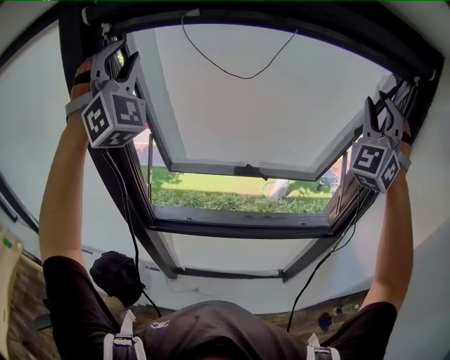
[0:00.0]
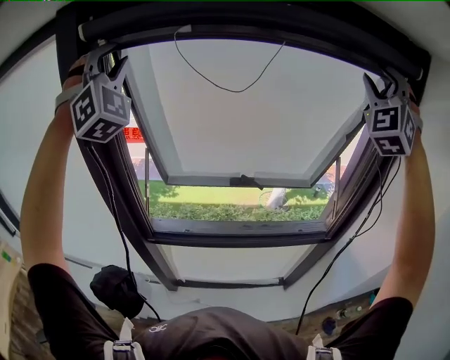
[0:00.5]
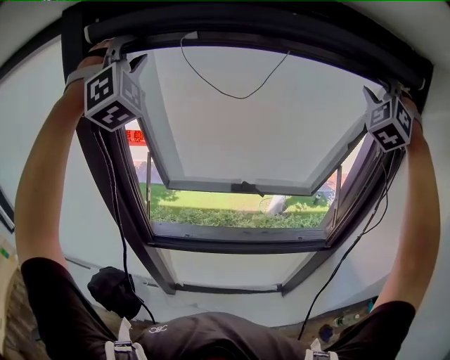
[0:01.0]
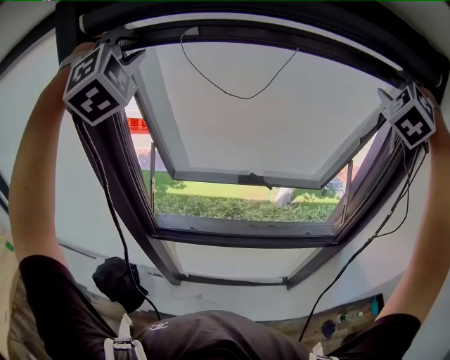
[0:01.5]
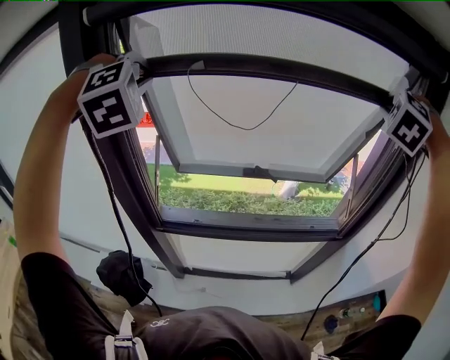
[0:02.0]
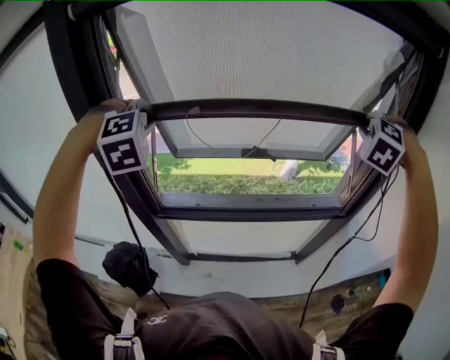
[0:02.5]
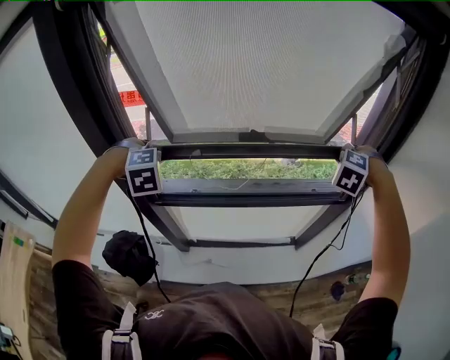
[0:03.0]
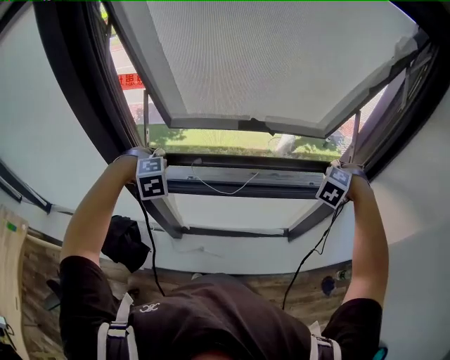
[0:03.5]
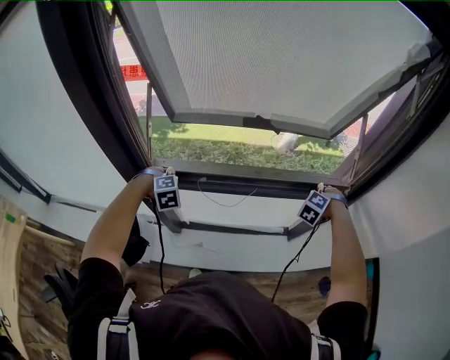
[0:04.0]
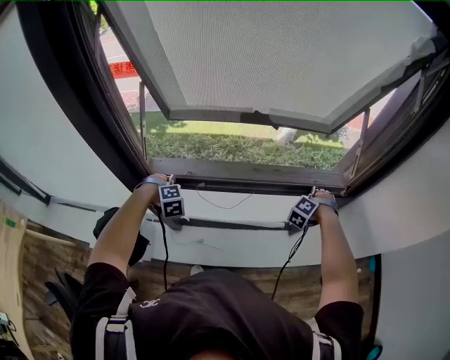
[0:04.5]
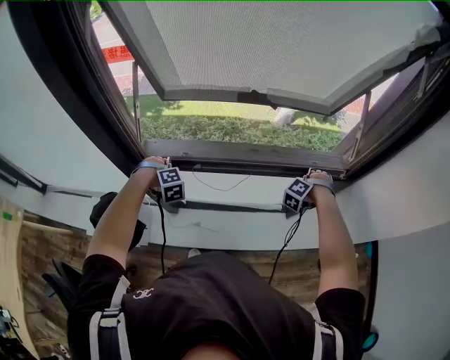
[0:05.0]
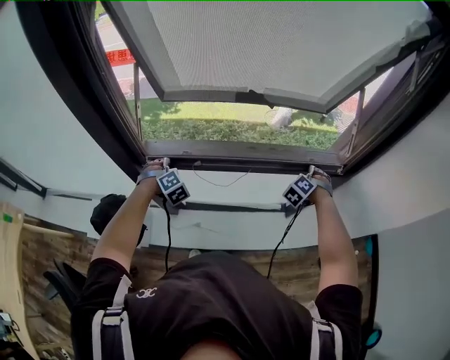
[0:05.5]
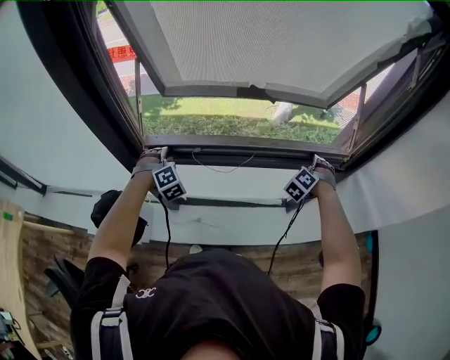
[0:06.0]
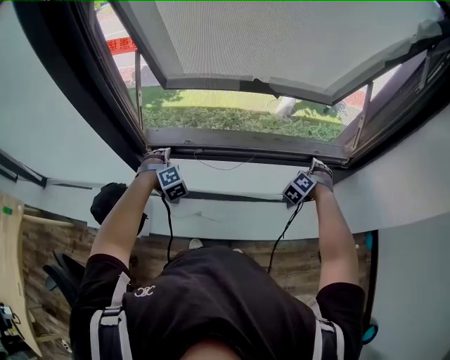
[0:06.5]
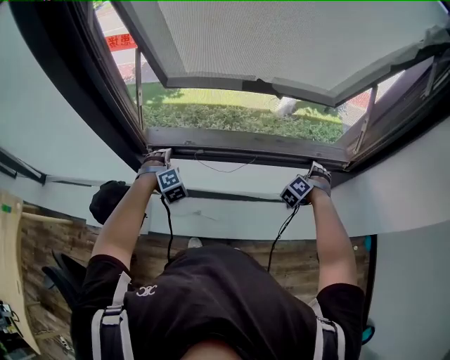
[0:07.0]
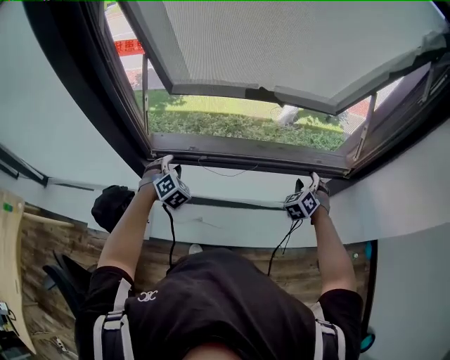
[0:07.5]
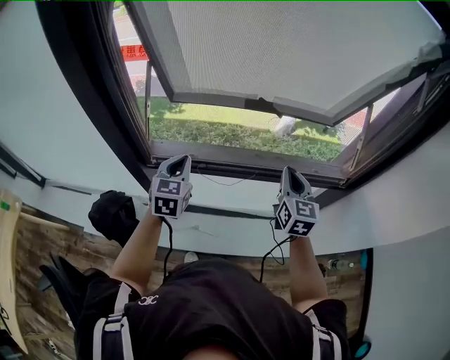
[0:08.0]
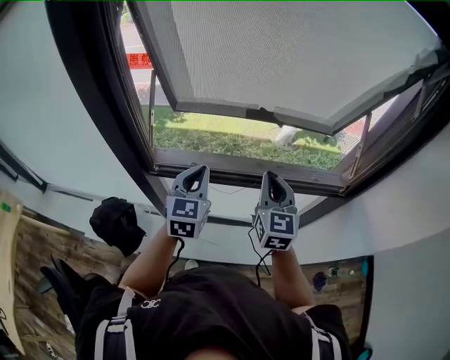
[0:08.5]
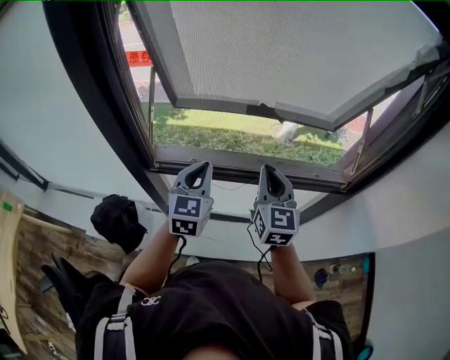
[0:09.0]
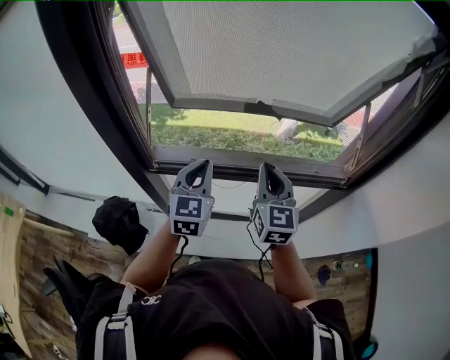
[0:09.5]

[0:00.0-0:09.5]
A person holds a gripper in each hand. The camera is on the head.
0.0 to 2.0 s: The right gripper moves forward, roughly 5 cm, travels upward and back again, some 10 cm each way, and points its fingers about 50 degrees further downward, while the left gripper is displaced downward by some 10 cm, points its fingers roughly 50 degrees further downward, and closes.
2.0 to 4.0 s: Both grippers move downward, roughly 60 cm. The left gripper tips its fingers downward by about 40 degrees. Meanwhile the right gripper changes its angle by about 30 degrees.
4.0 to 5.5 s: The right gripper is displaced downward by some 5 cm.
5.5 to 7.5 s: The left gripper opens its fingers. The right gripper rotates about 20 degrees, and opens, then closes again.
7.5 to 9.5 s: The left gripper shifts approximately 25 cm upward and to the right, tilts its fingers some 30 degrees upward, and closes; the right gripper shifts approximately 30 cm upward and to the left, angles its fingers upward, by some 30 degrees, and closes its fingers.

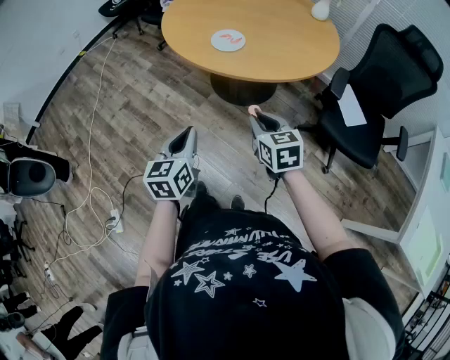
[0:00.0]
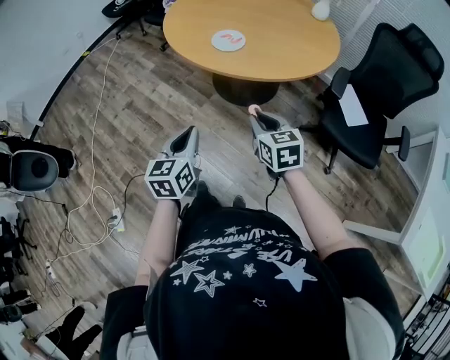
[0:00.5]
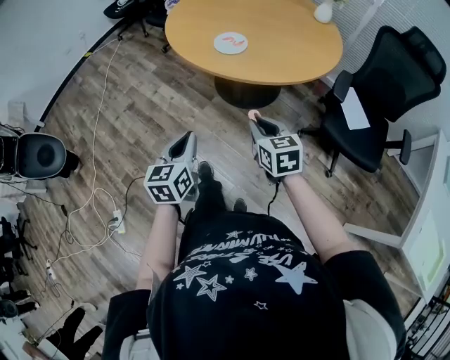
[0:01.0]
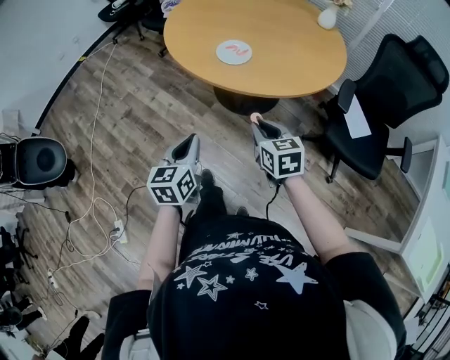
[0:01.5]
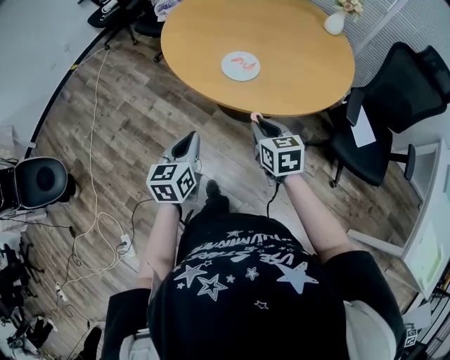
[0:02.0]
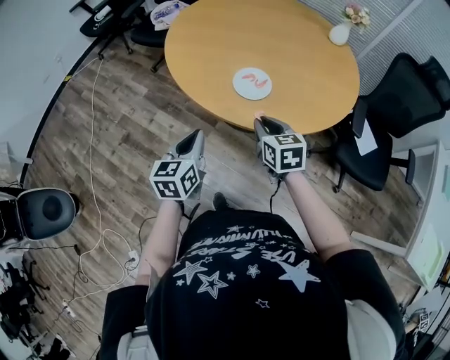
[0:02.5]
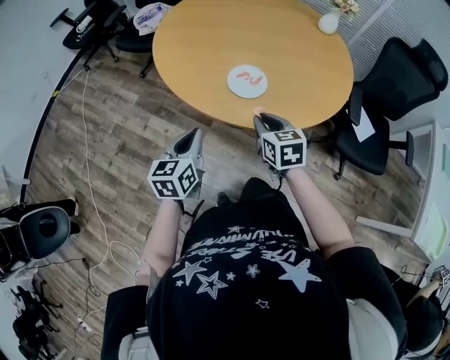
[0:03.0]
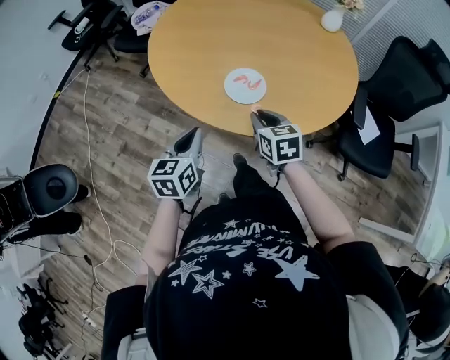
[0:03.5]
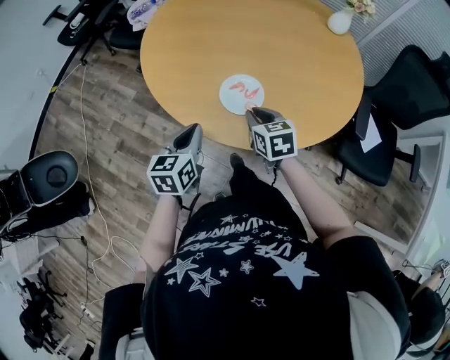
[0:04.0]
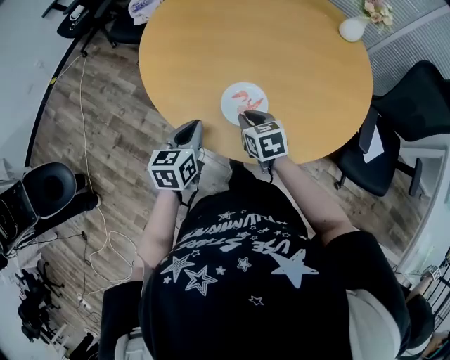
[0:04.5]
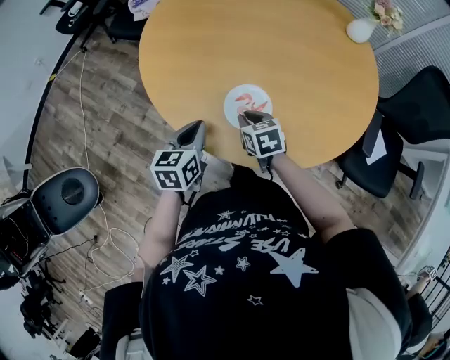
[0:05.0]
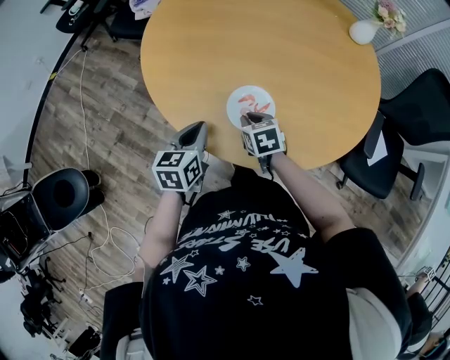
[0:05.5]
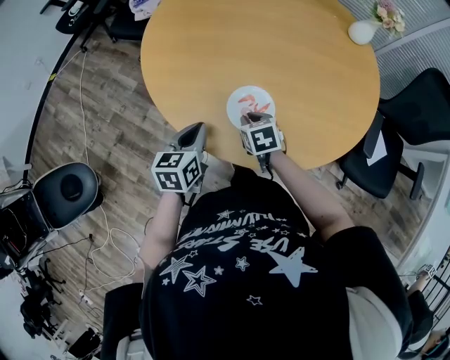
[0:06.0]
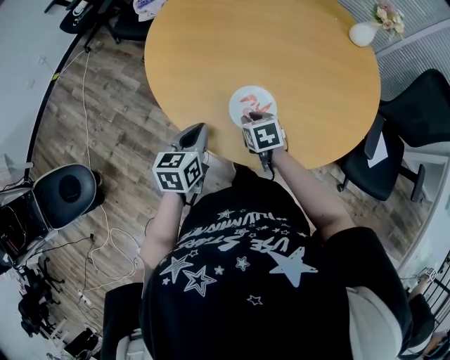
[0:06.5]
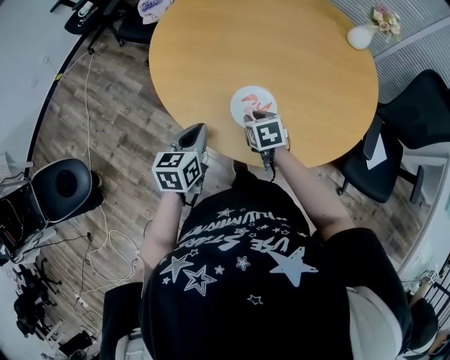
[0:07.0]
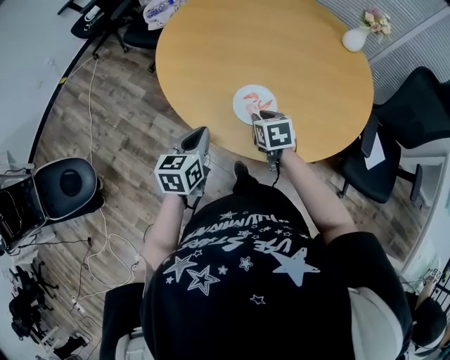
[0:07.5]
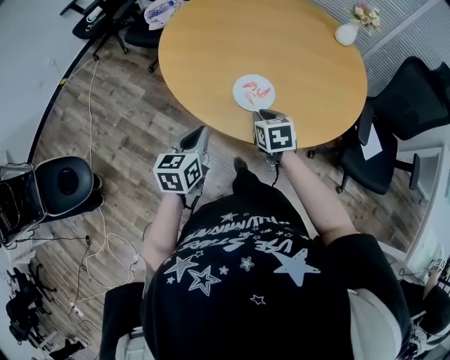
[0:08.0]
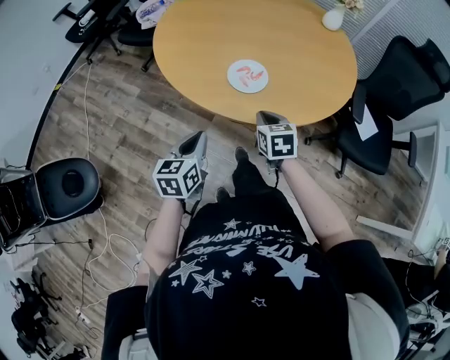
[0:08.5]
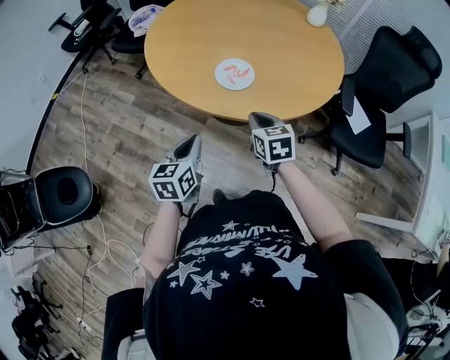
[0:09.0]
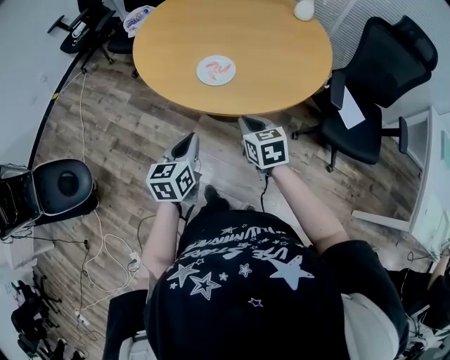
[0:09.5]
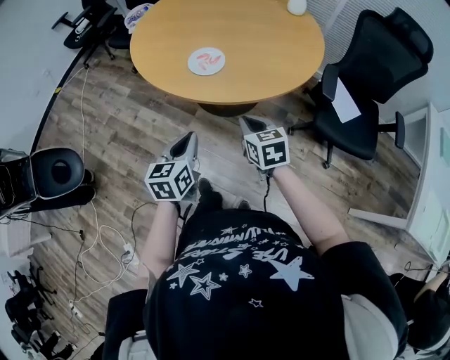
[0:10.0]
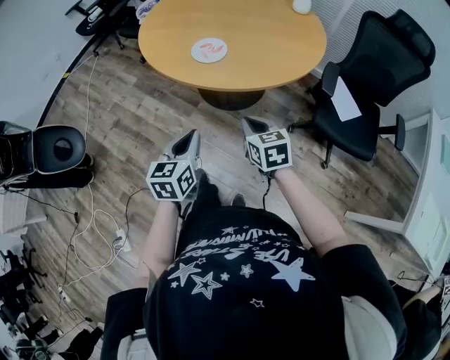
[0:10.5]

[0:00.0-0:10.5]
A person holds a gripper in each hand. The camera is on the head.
0.0 to 2.0 s: The grippers both shift forward by about 15 cm.
2.0 to 4.0 s: Both grippers travel together forward, about 20 cm.
4.0 to 6.5 s: The left gripper moves forward, about 5 cm. Meanwhile the right gripper goes about 10 cm downward and forward.
6.5 to 8.5 s: The right gripper moves backward and upward, some 20 cm, and rotates roughly 20 degrees. The left gripper travels backward by about 20 cm.
8.5 to 10.5 s: Both grippers move backward and to the right, approximately 25 cm.

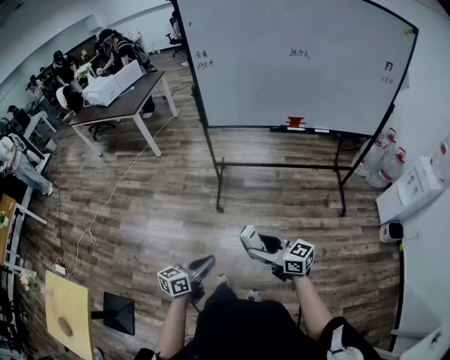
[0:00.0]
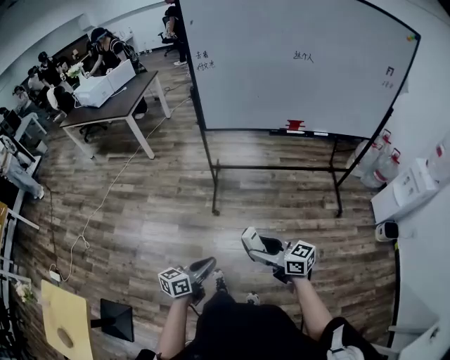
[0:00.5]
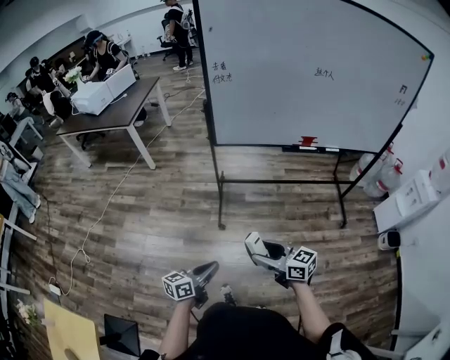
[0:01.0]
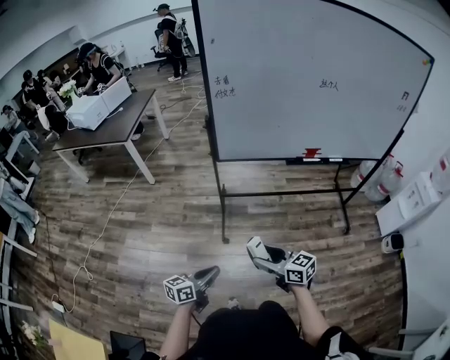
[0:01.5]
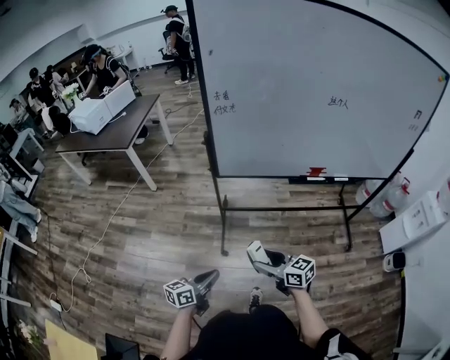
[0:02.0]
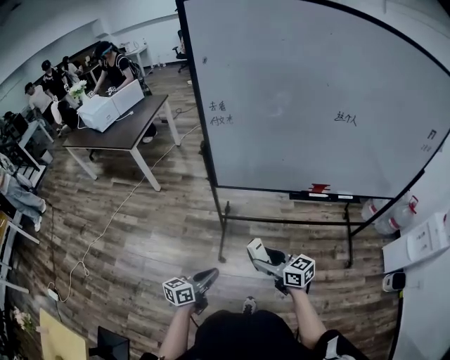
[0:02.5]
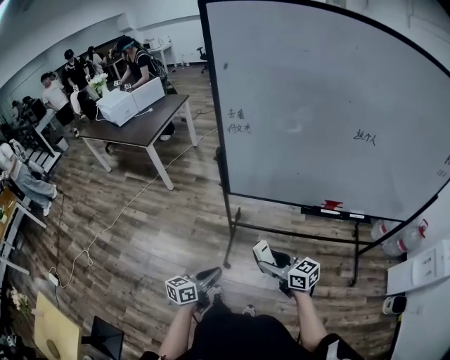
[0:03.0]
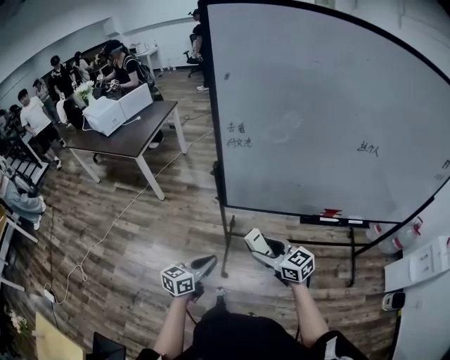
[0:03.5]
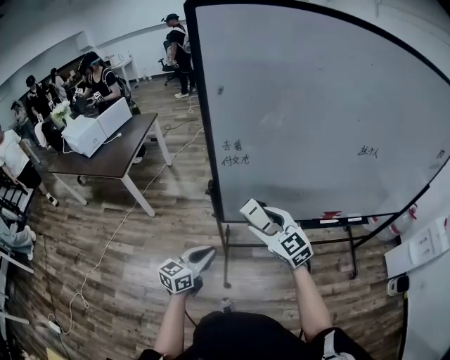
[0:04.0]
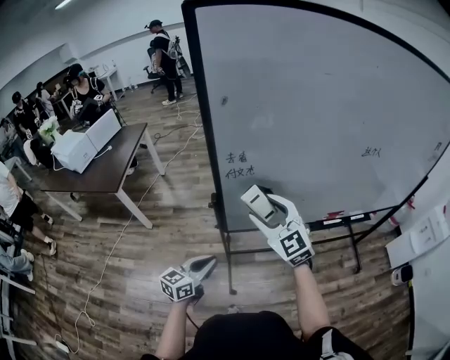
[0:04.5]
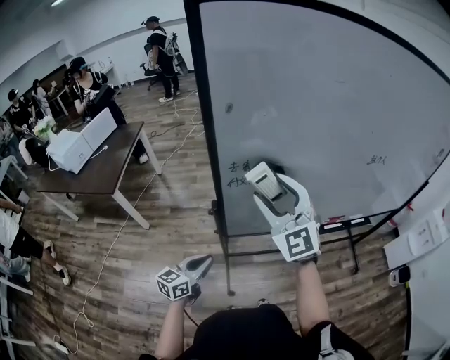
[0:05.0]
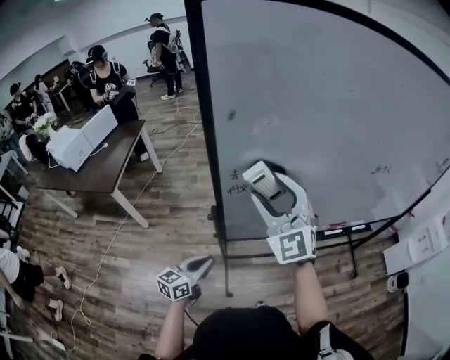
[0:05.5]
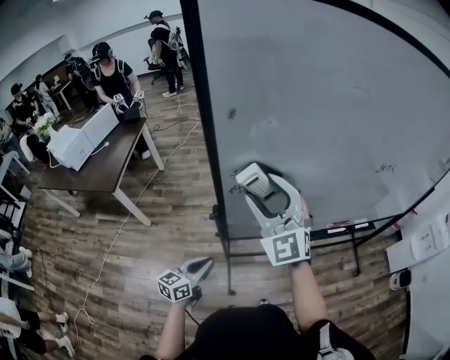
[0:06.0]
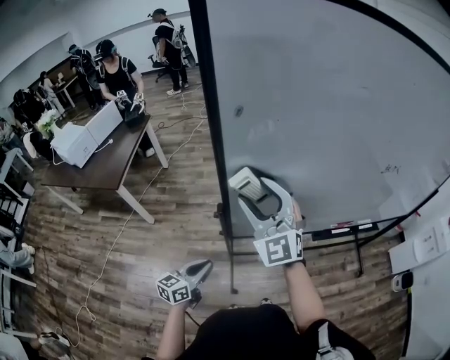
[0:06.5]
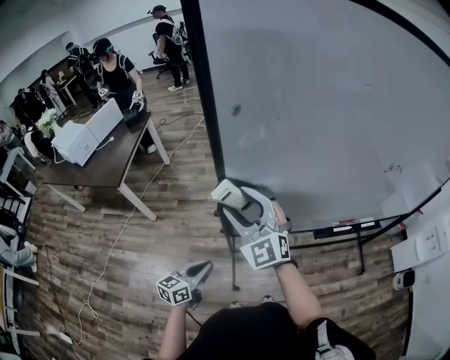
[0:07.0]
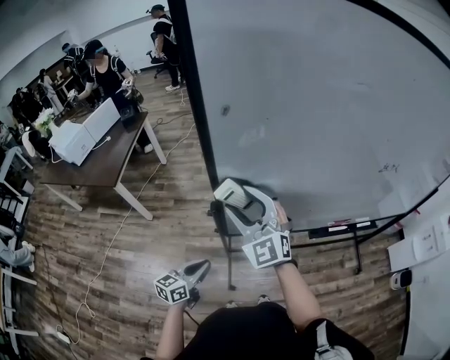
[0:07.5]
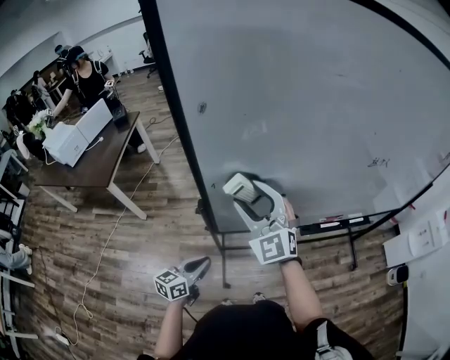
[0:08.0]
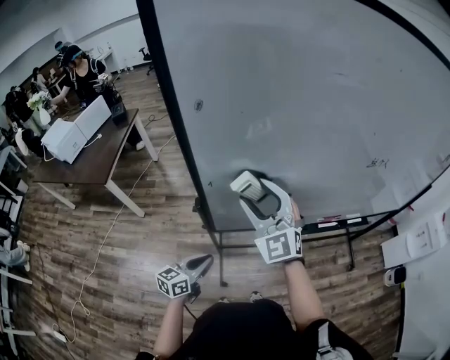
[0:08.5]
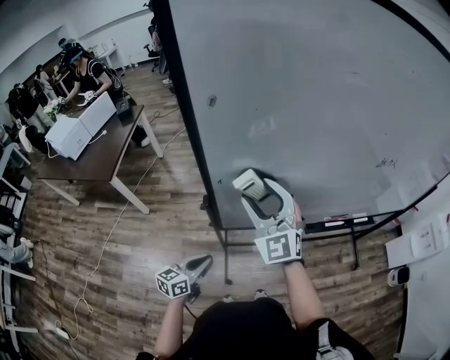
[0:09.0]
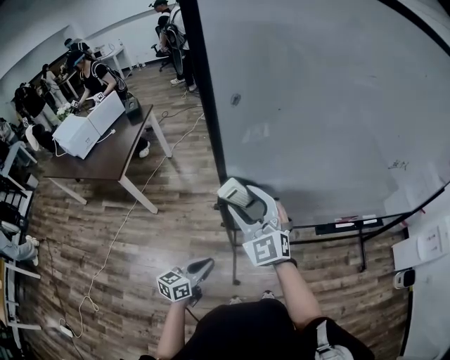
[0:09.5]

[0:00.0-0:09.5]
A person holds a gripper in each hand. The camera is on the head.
0.0 to 2.0 s: The two grippers go some 35 cm forward.
2.0 to 4.0 s: The left gripper heads forward, covering about 35 cm, and turns by some 20 degrees; the right gripper shifts roughly 40 cm forward and upward, and turns by some 40 degrees.
4.0 to 5.5 s: The left gripper is displaced forward and to the left by approximately 10 cm. Meanwhile the right gripper goes some 20 cm upward and forward, and swivels some 40 degrees.
5.5 to 7.5 s: The right gripper shifts roughly 10 cm downward and to the left.
7.5 to 9.5 s: The right gripper goes to the right and returns, some 10 cm each way.
